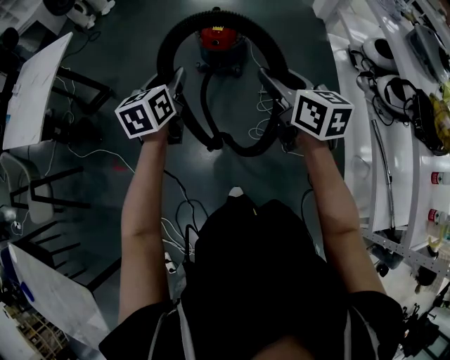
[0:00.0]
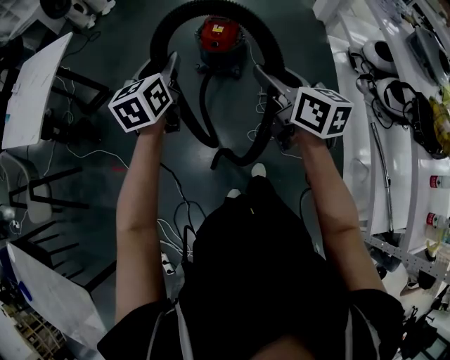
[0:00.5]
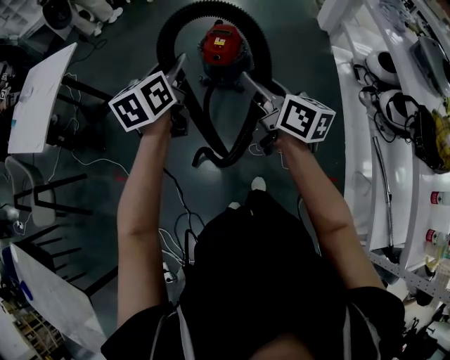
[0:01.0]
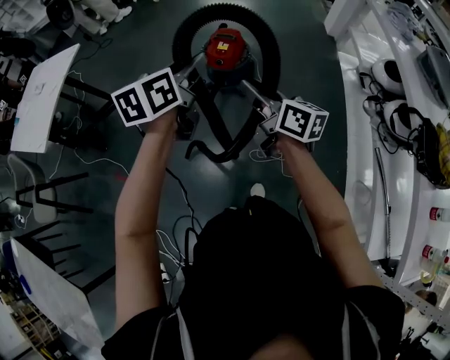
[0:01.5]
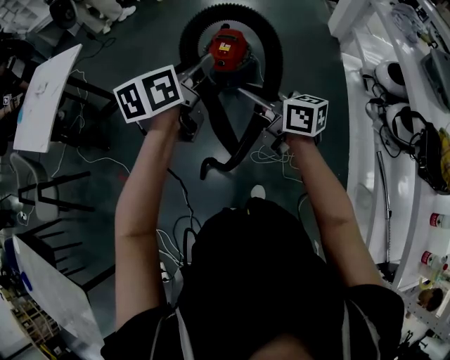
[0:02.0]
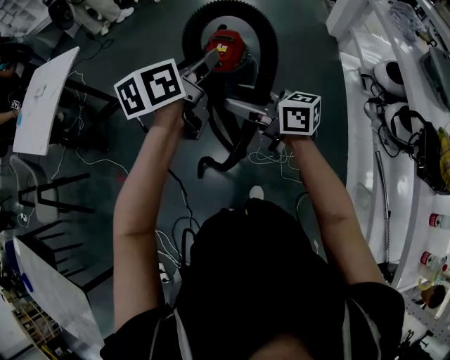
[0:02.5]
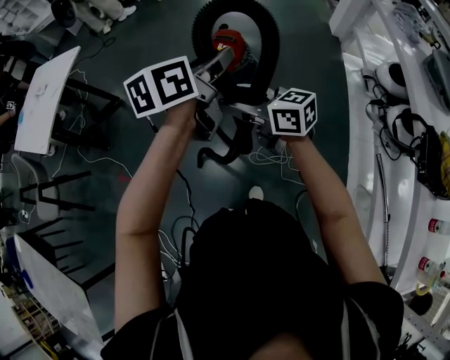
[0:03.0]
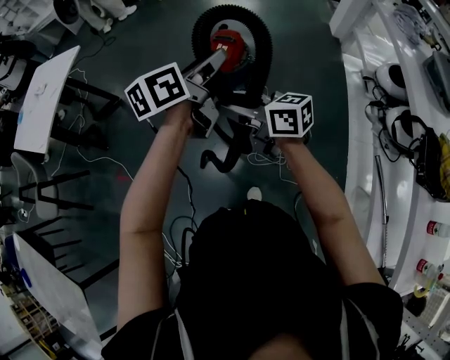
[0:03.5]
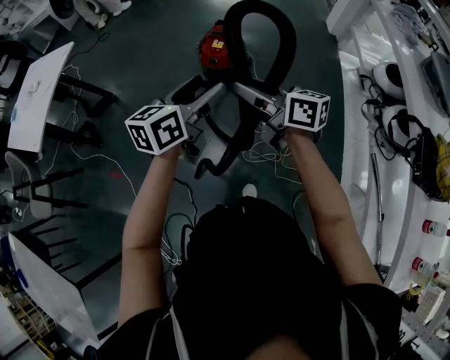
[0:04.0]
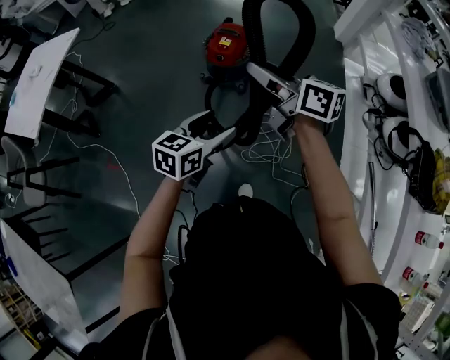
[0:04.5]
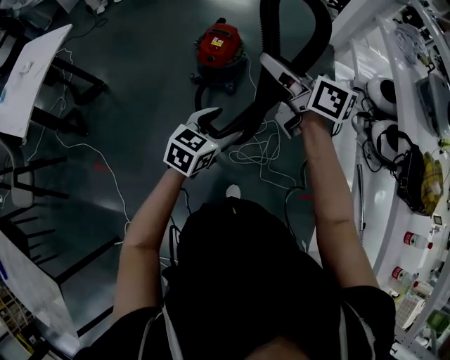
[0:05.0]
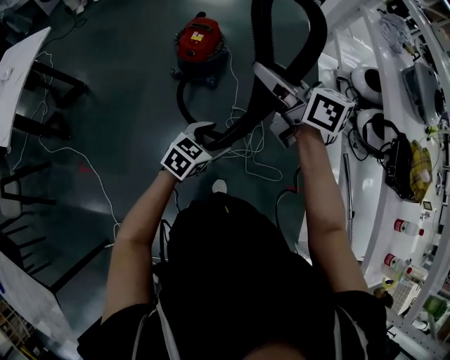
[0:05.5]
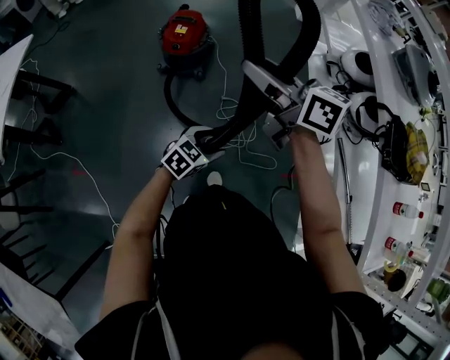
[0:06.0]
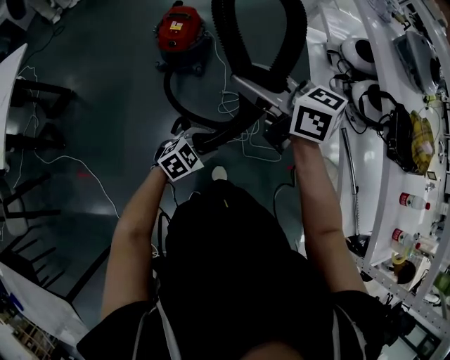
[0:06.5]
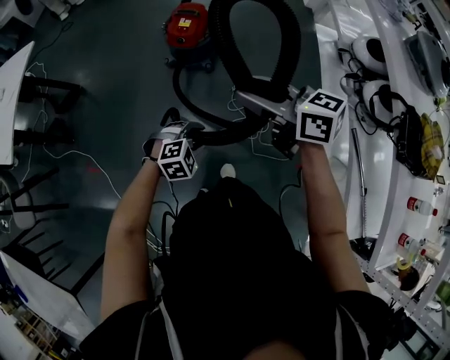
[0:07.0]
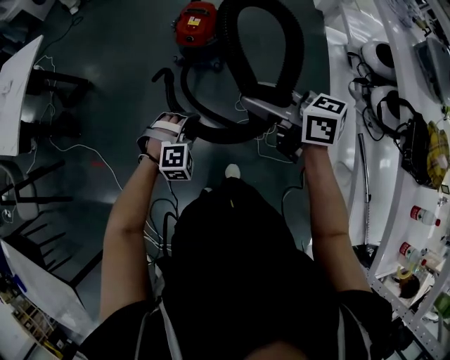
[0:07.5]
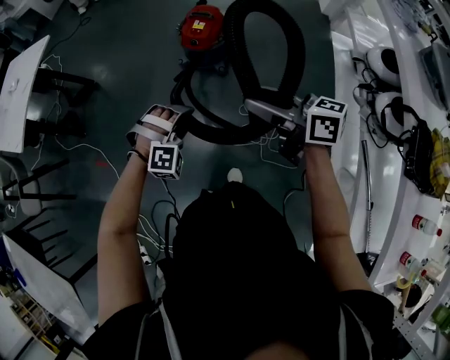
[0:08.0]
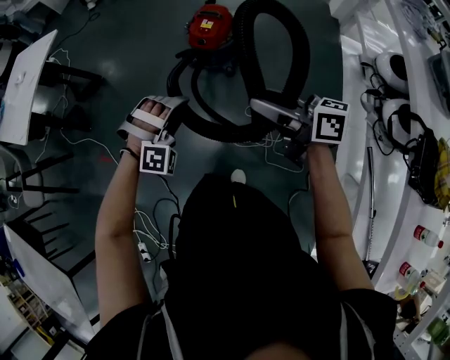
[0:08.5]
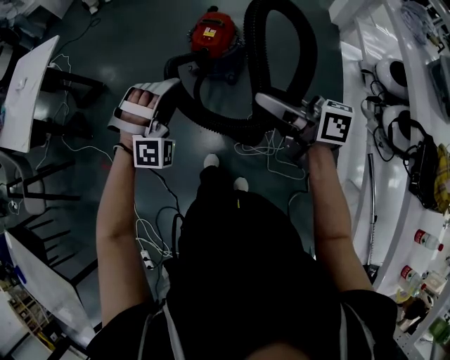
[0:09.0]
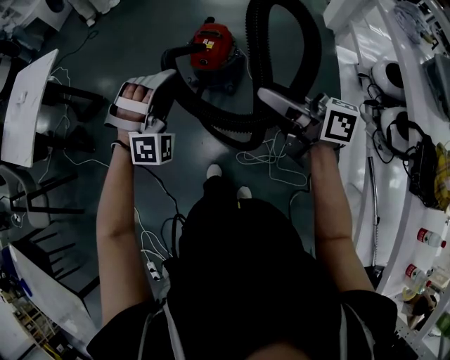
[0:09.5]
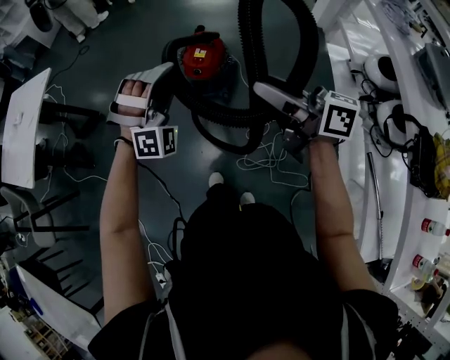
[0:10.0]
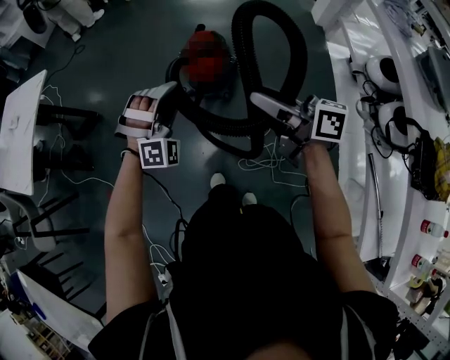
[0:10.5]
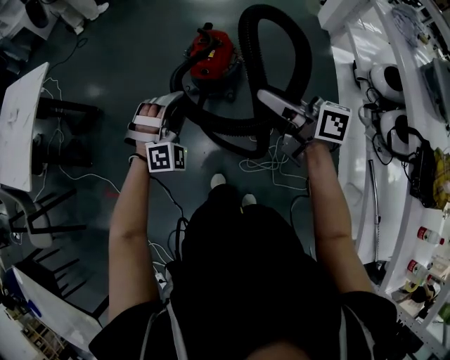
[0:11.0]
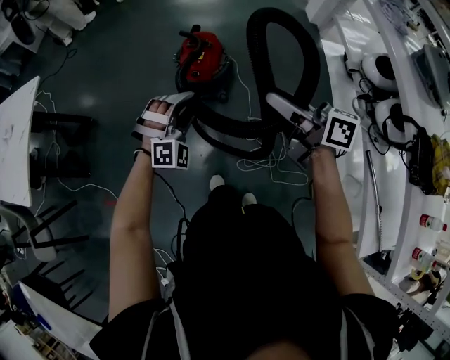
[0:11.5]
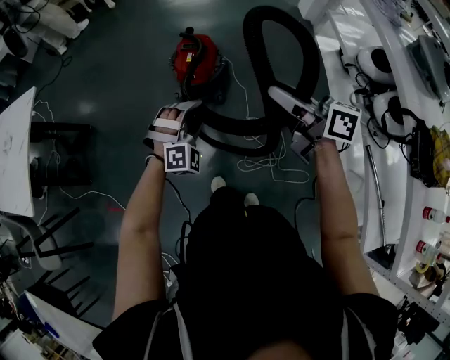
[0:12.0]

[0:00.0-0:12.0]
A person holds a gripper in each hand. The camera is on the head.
0:00.0 to 0:02.0: The right gripper is displaced forward by approximately 10 cm, and turns by about 30 degrees; the left gripper shifts about 20 cm to the right, upward and forward.
0:02.0 to 0:04.0: The left gripper ends up about 5 cm from where it was.
0:04.0 to 0:06.0: The right gripper shifts some 10 cm to the right and upward, while the left gripper goes roughly 30 cm downward, backward and to the right, and rotates roughly 50 degrees.
0:06.0 to 0:08.0: The right gripper travels downward by about 10 cm. Meanwhile the left gripper moves about 10 cm, and rotates around the line of its fingers by some 60 degrees, clockwise from behind.
0:08.0 to 0:10.0: The left gripper is displaced upward and forward by some 25 cm, and tips its fingers upward by about 40 degrees; the right gripper heads forward and upward, covering approximately 10 cm.
0:10.0 to 0:12.0: The left gripper heads downward, covering approximately 15 cm, and rotates about 30 degrees; the right gripper is displaced forward and downward by about 10 cm.

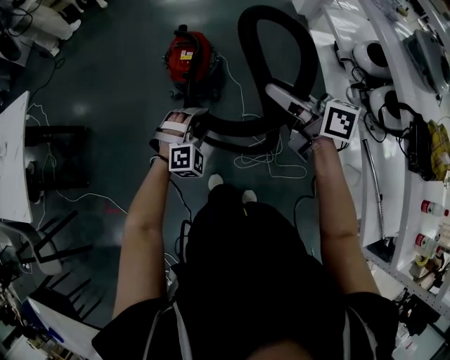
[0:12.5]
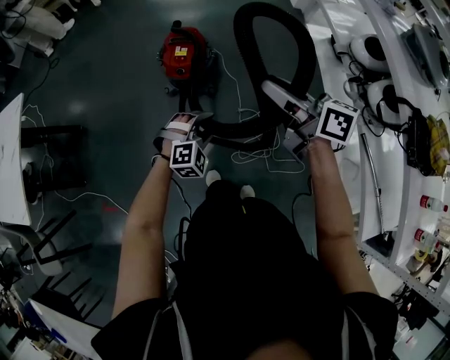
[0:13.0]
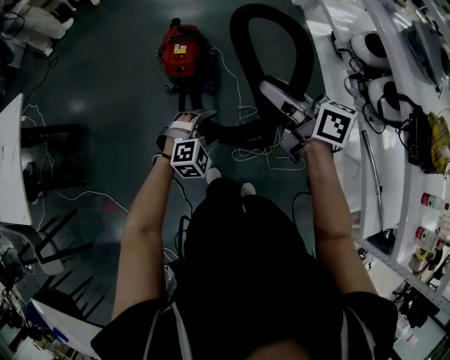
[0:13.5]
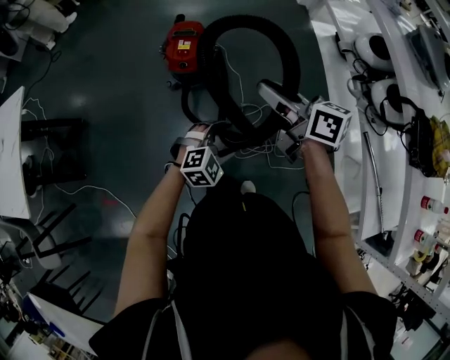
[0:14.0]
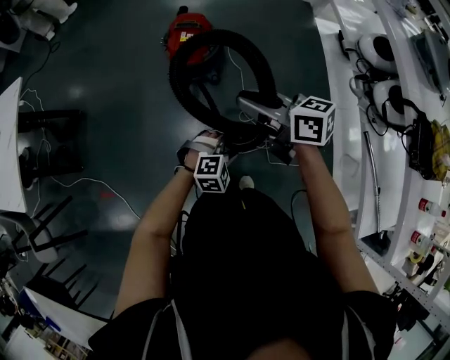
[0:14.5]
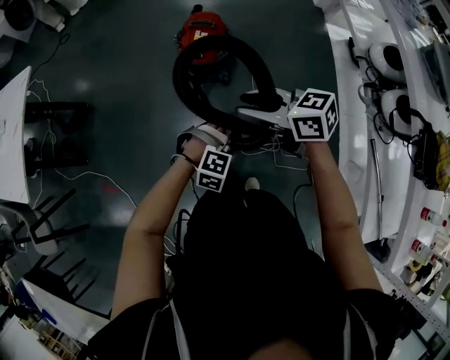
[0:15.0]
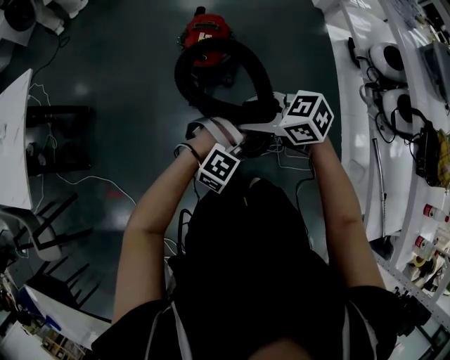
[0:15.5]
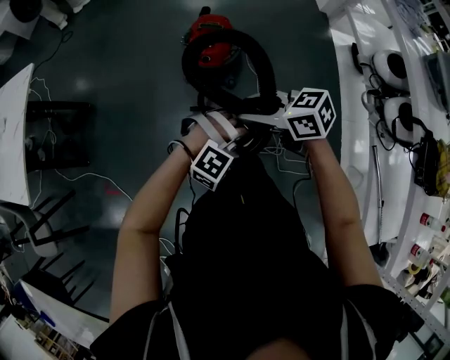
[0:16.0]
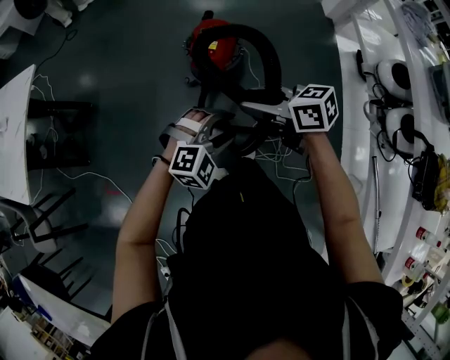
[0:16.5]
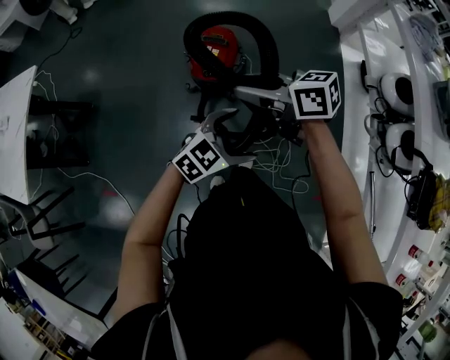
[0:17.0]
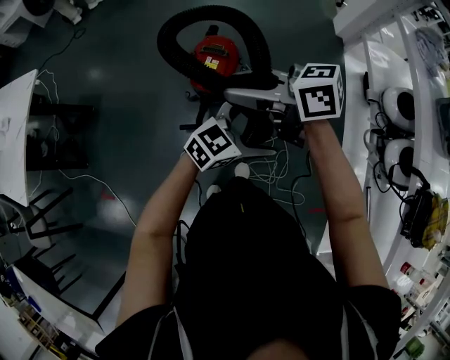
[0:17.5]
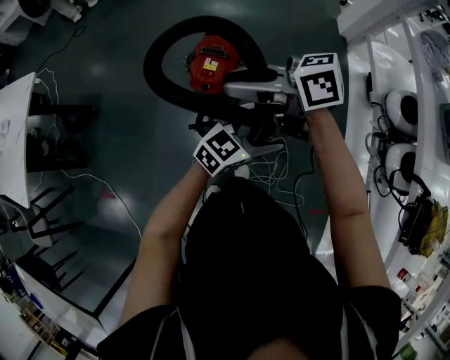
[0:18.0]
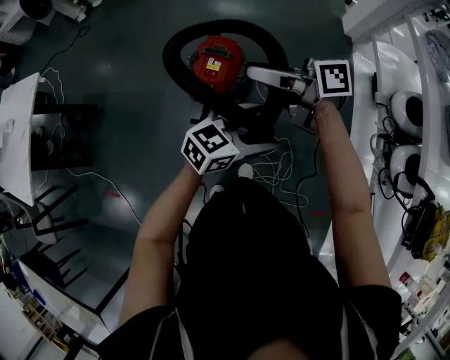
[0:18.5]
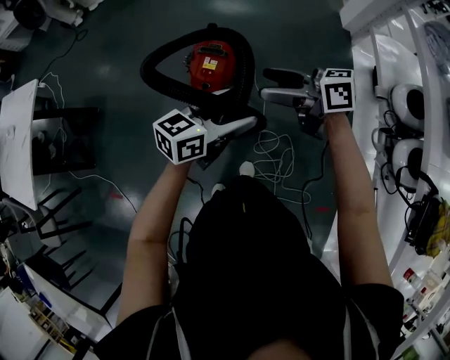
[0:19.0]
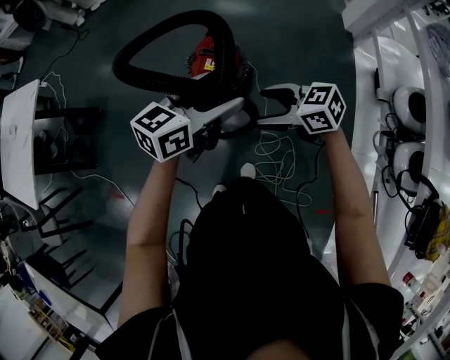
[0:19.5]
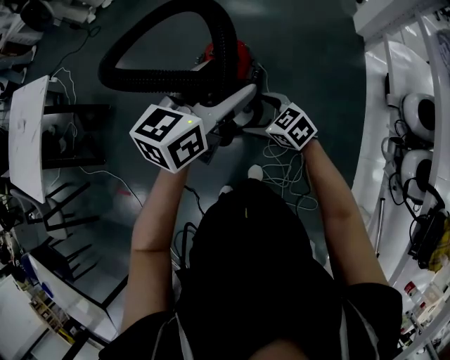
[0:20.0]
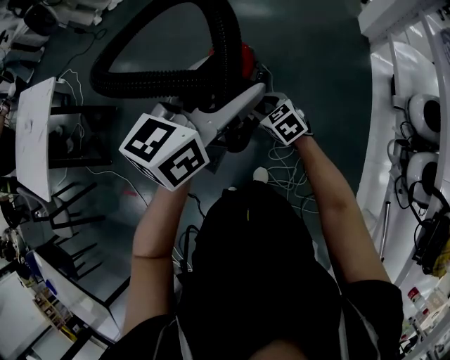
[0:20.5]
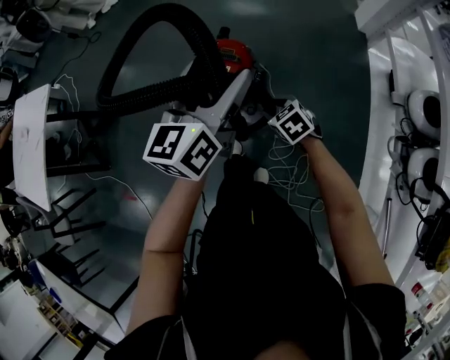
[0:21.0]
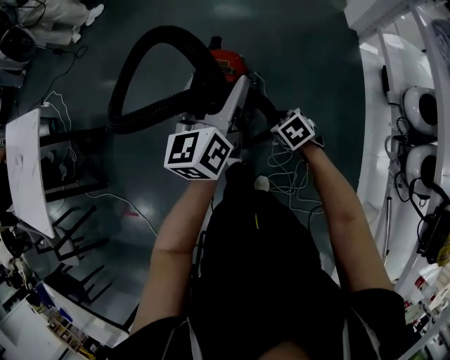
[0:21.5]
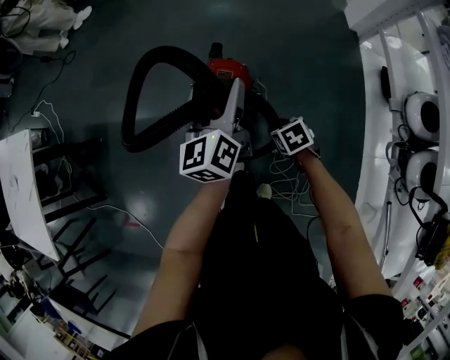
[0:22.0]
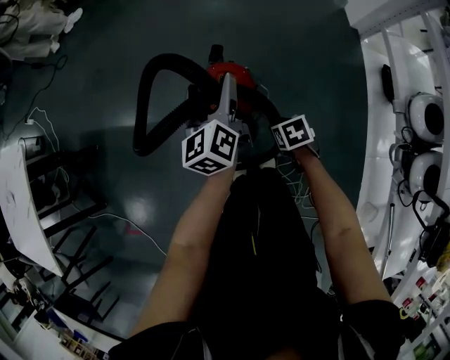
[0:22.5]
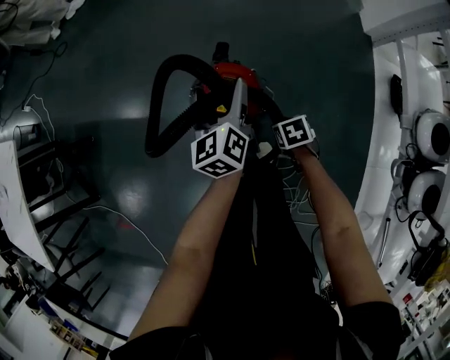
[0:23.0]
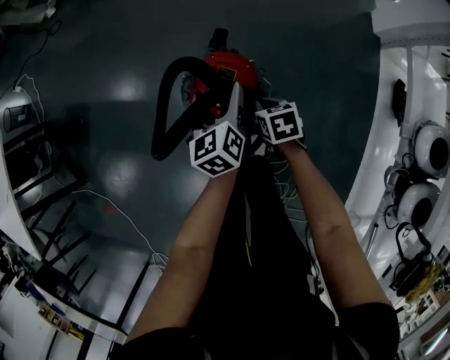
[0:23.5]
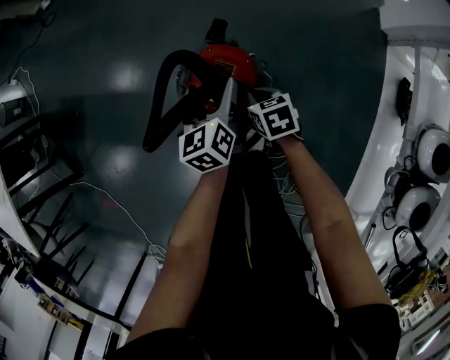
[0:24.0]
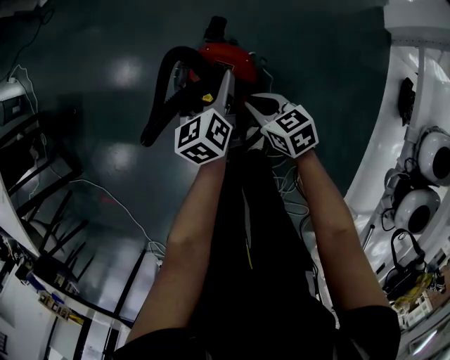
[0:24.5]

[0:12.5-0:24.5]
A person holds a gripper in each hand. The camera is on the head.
0:12.5 to 0:14.5: The right gripper goes about 10 cm downward and to the left. The left gripper moves backward, to the right and downward, about 15 cm, and swivels roughly 30 degrees.
0:14.5 to 0:16.5: The left gripper shifts by approximately 20 cm, and closes and opens again; the right gripper shifts by approximately 10 cm.
0:16.5 to 0:18.5: The left gripper shifts by some 20 cm, and twists roughly 60 degrees counterclockwise, seen from behind. Meanwhile the right gripper ends up about 20 cm from where it was, and changes its angle by about 30 degrees.
0:18.5 to 0:20.5: The right gripper shifts some 25 cm downward, points its fingers about 40 degrees further downward, and opens and closes again, while the left gripper shifts roughly 15 cm upward, and rotates about 30 degrees.
0:20.5 to 0:22.5: The left gripper shifts approximately 40 cm forward and downward, and turns by about 40 degrees; the right gripper is displaced forward and downward by approximately 20 cm, and rotates about 40 degrees.
0:22.5 to 0:24.5: The right gripper changes place by approximately 15 cm, and points its fingers some 30 degrees further upward, while the left gripper moves downward, approximately 20 cm.

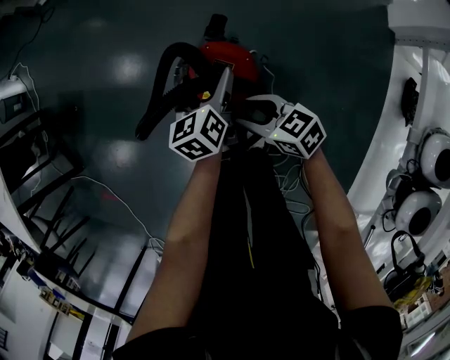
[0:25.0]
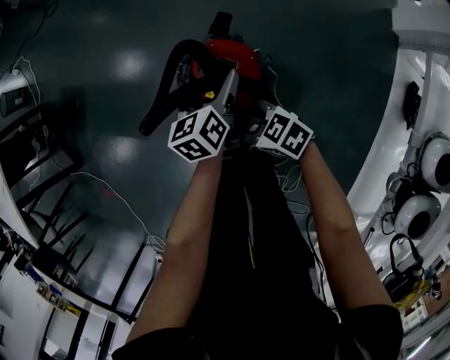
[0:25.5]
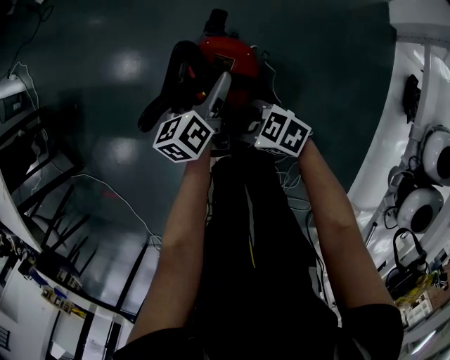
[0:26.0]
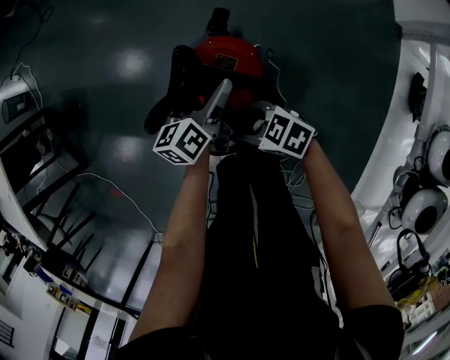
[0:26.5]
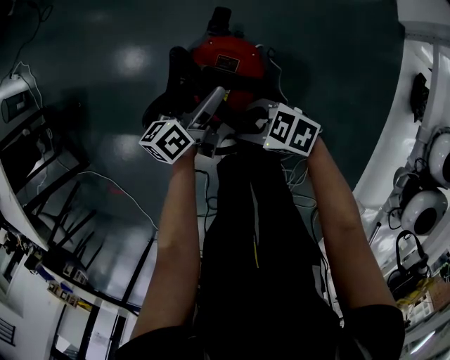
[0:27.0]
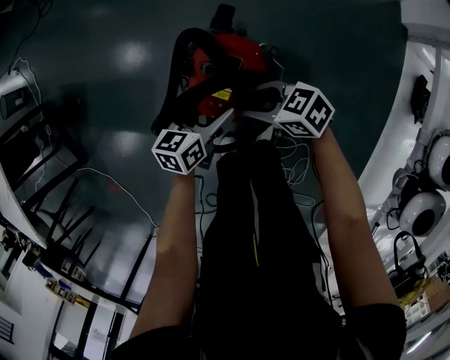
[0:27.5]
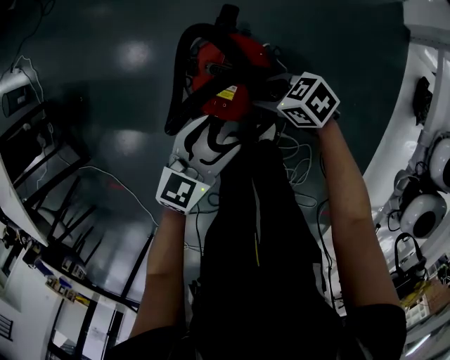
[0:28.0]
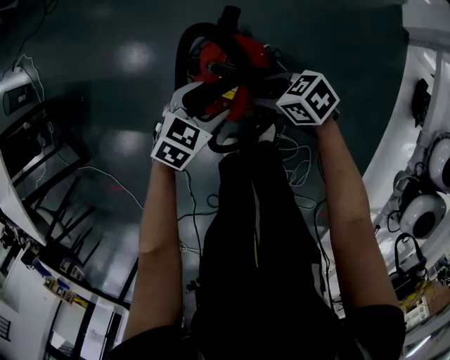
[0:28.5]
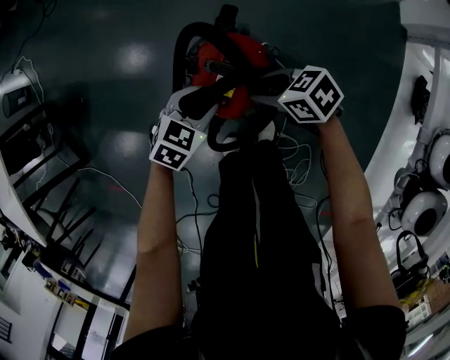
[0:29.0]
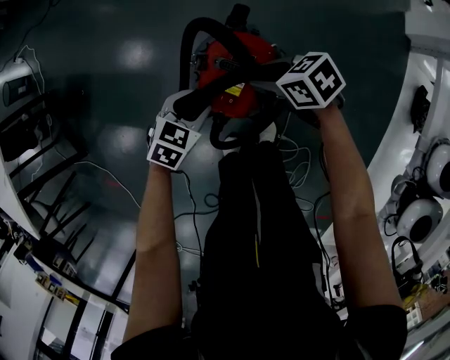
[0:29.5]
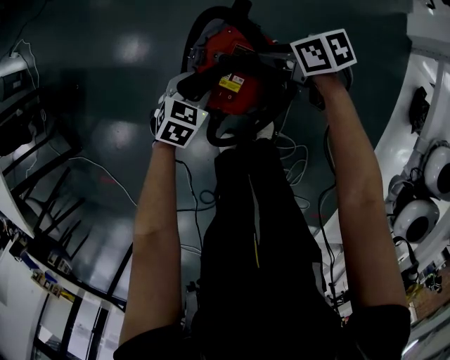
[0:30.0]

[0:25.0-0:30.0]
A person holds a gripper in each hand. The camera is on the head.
0:25.0 to 0:27.5: The left gripper changes place by roughly 10 cm, and turns by roughly 30 degrees.
0:27.5 to 0:30.0: The right gripper shifts by about 10 cm, and swivels roughly 30 degrees, while the left gripper travels upward and back again, roughly 10 cm each way, changes its angle by approximately 40 degrees, and closes.
